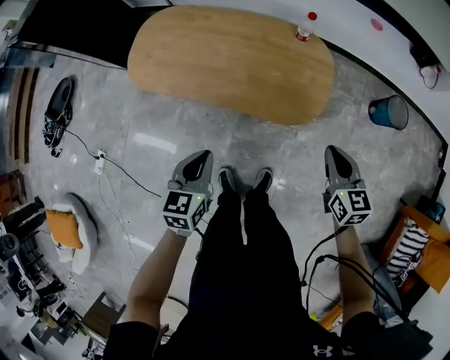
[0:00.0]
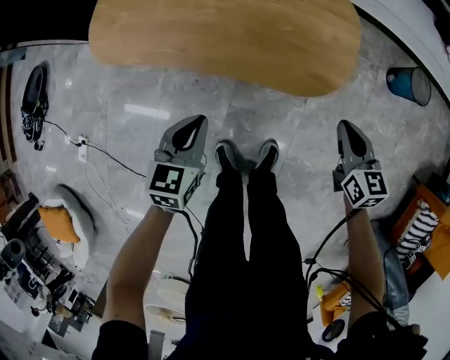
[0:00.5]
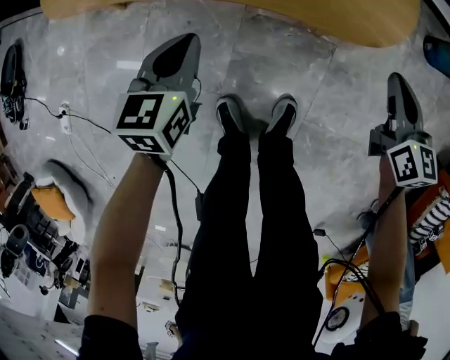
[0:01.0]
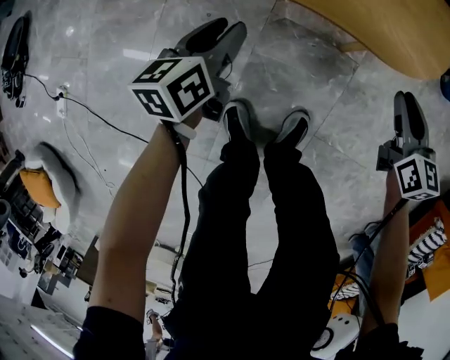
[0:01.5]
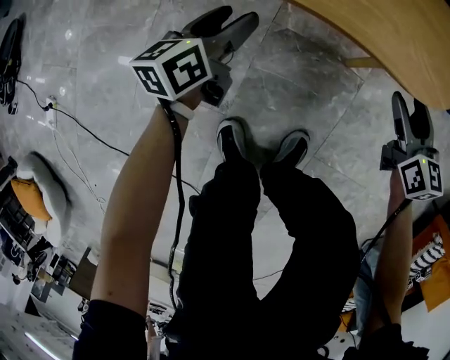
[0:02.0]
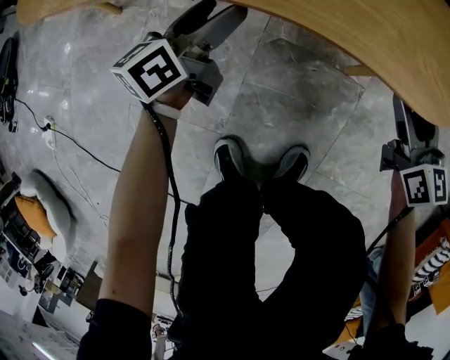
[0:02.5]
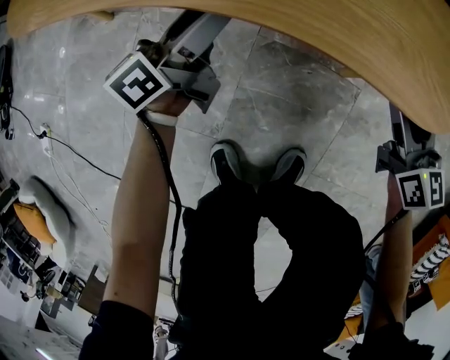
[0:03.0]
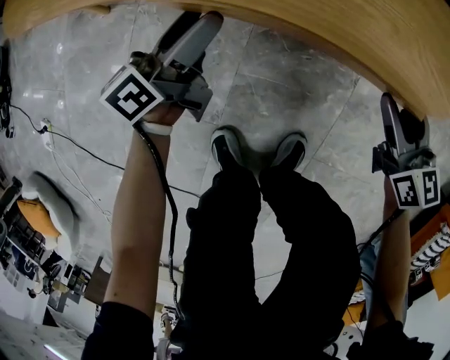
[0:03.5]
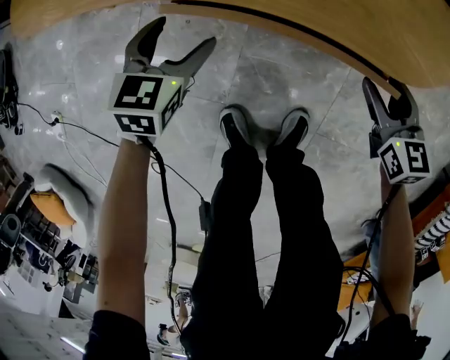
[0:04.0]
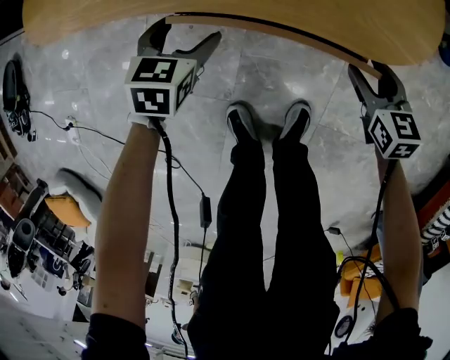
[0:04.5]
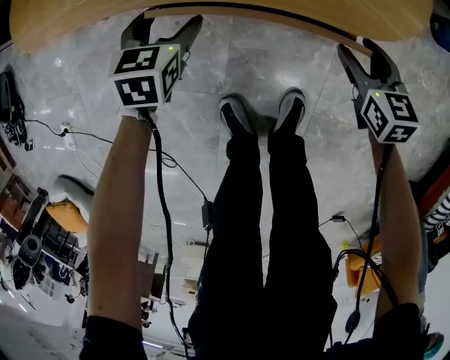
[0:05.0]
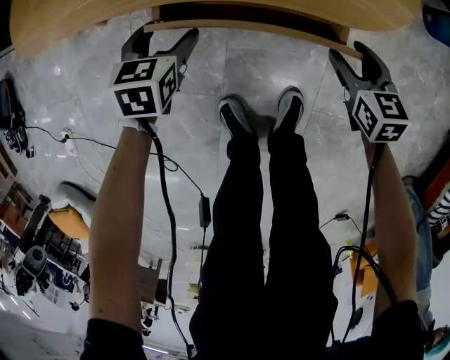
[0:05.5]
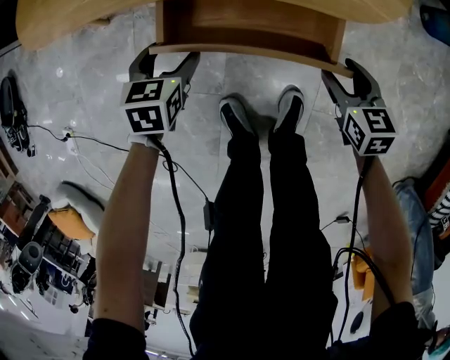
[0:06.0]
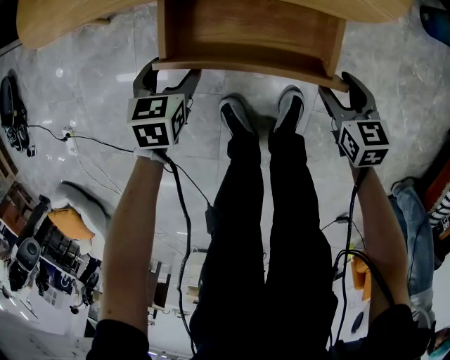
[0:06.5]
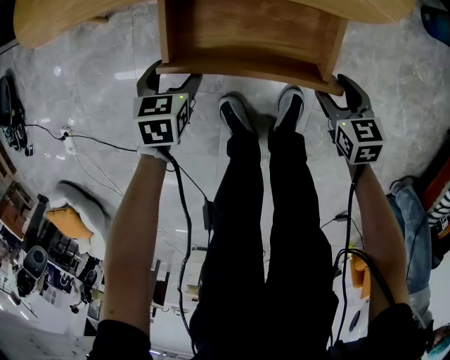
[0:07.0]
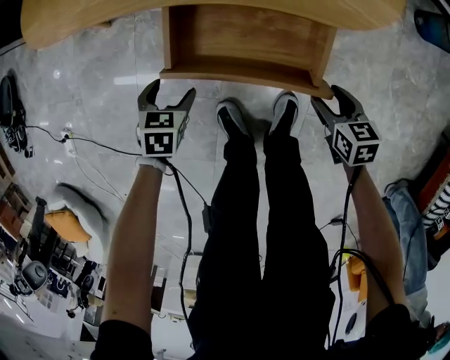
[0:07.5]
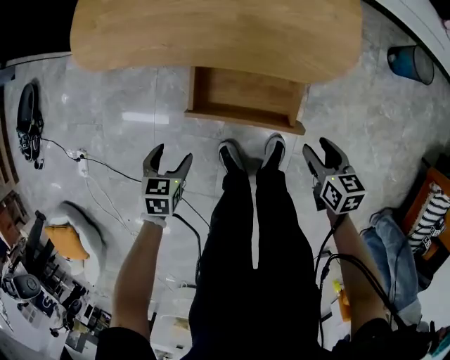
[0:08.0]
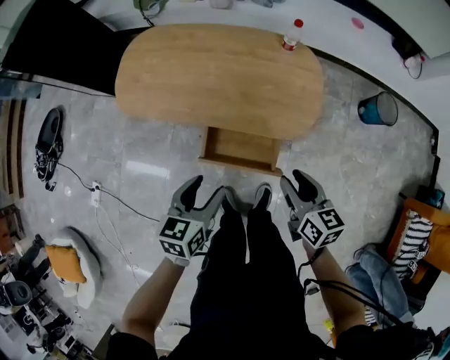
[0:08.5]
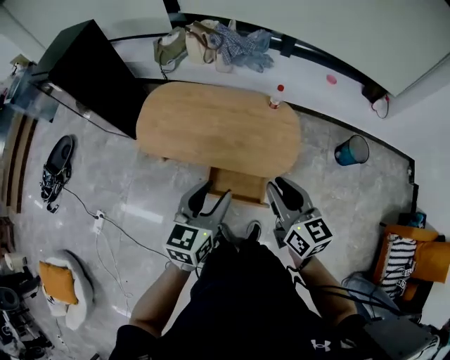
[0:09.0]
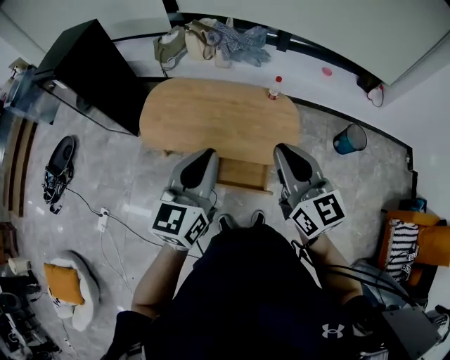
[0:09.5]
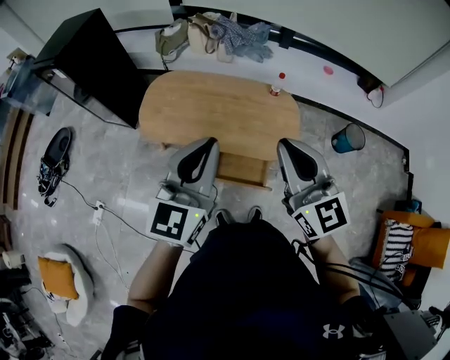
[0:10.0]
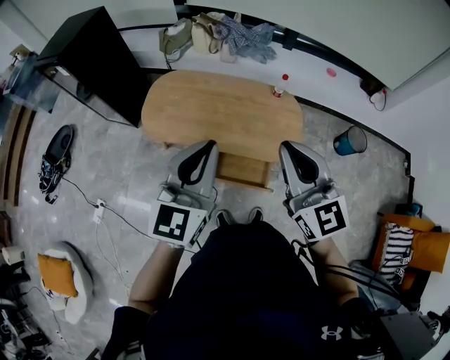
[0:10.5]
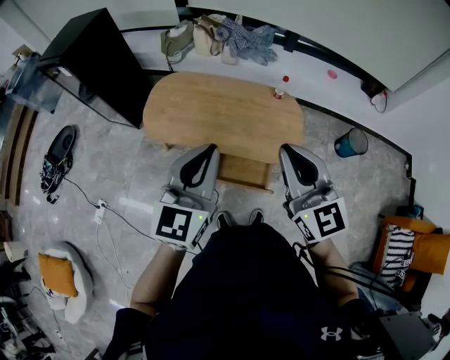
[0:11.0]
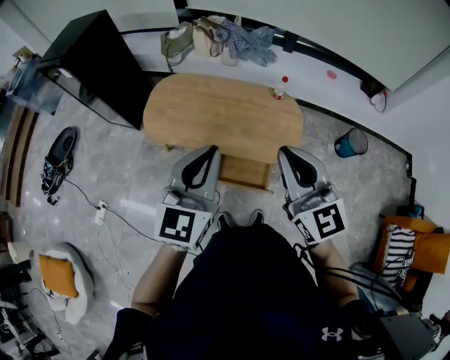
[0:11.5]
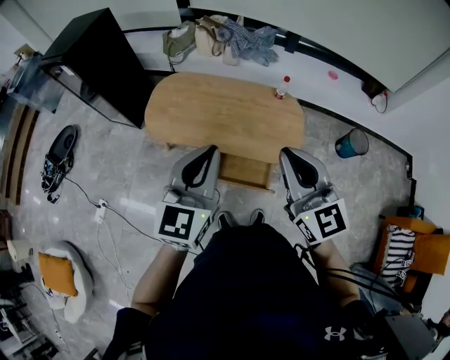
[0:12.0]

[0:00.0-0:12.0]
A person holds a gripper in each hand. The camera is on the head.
0:00.0 to 0:02.0: The grippers both shift downward by about 40 cm. The right gripper opens up, while the left gripper swivels roughly 30 degrees, and opens up.
0:02.0 to 0:04.0: The left gripper moves some 5 cm forward and comes back, swivels some 40 degrees, and opens up.
0:04.0 to 0:06.0: Both grippers travel together backward, approximately 5 cm.
0:06.0 to 0:08.0: The left gripper moves upward, backward and to the left, roughly 20 cm; the right gripper moves upward, about 15 cm.
0:08.0 to 0:10.0: Both grippers move upward, roughly 70 cm. The left gripper tips its fingers upward by about 60 degrees, and closes its fingers; the right gripper angles its fingers upward, by roughly 50 degrees, and closes its fingers.
0:10.0 to 0:12.0: The grippers move only a little.

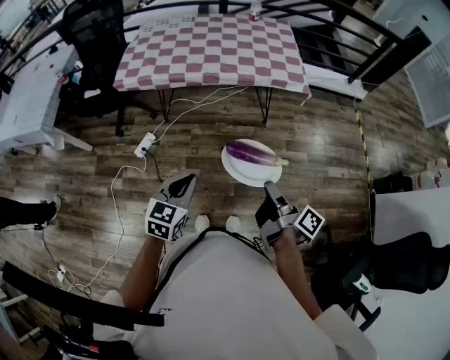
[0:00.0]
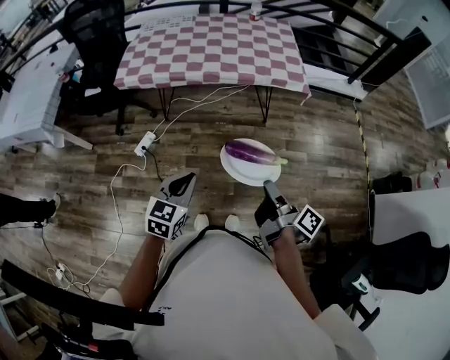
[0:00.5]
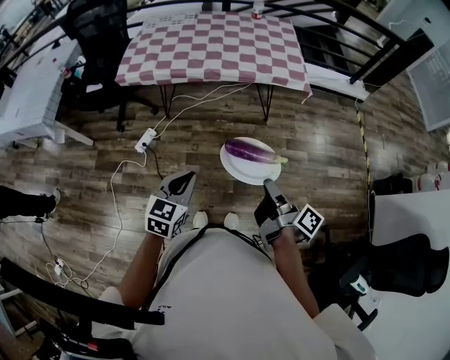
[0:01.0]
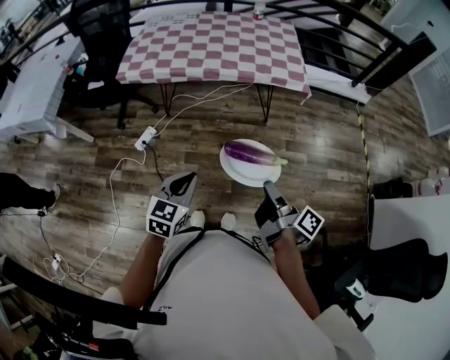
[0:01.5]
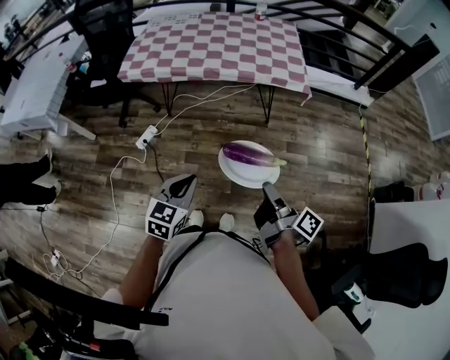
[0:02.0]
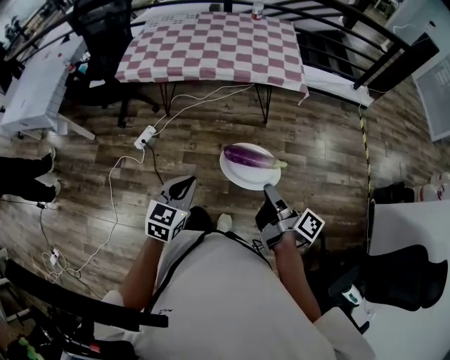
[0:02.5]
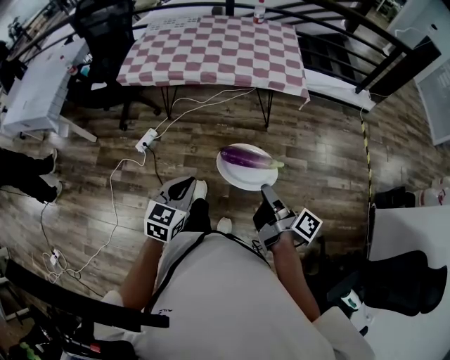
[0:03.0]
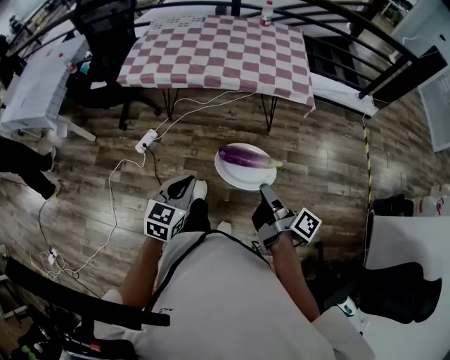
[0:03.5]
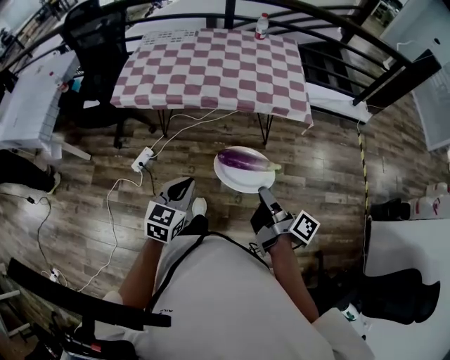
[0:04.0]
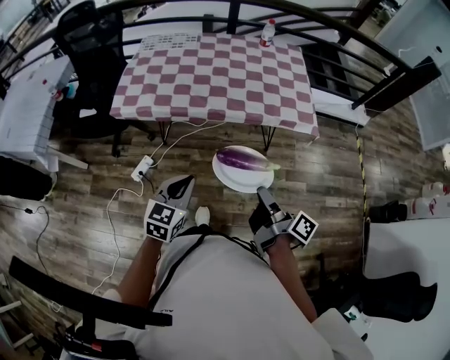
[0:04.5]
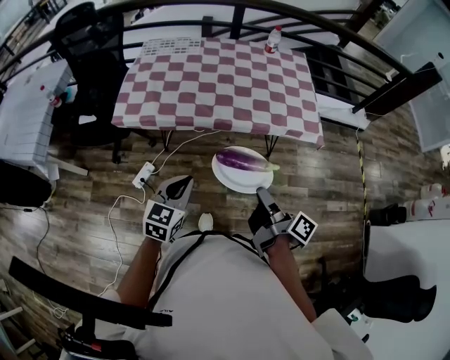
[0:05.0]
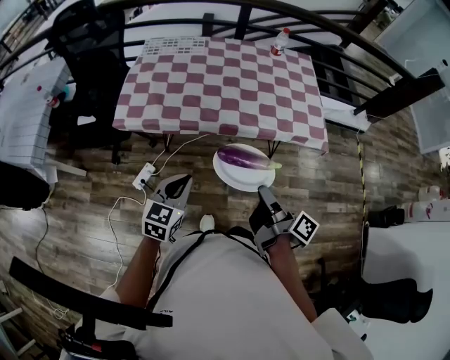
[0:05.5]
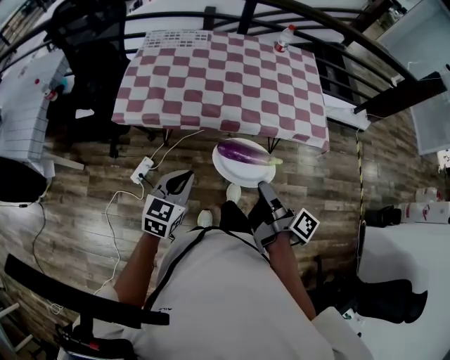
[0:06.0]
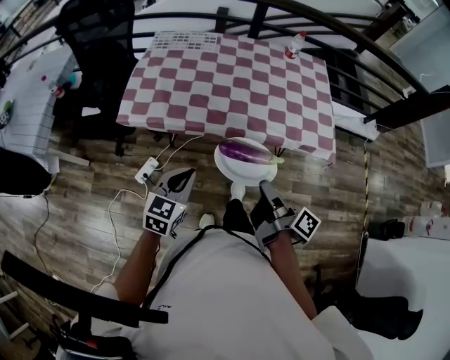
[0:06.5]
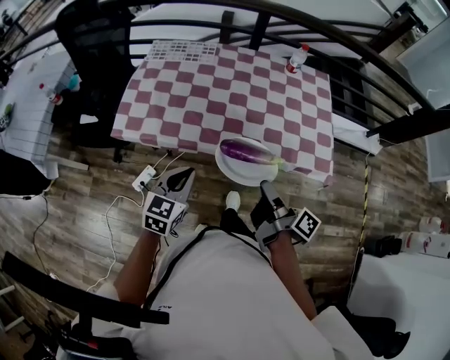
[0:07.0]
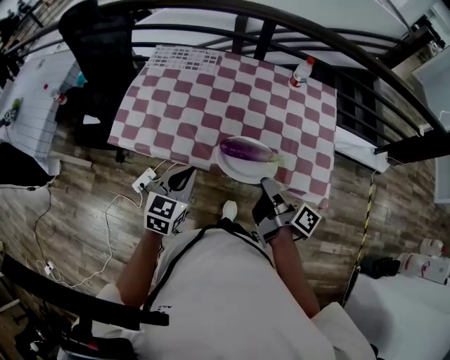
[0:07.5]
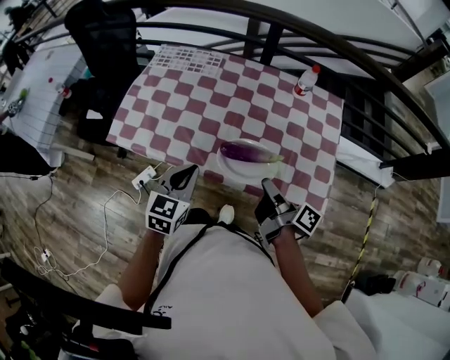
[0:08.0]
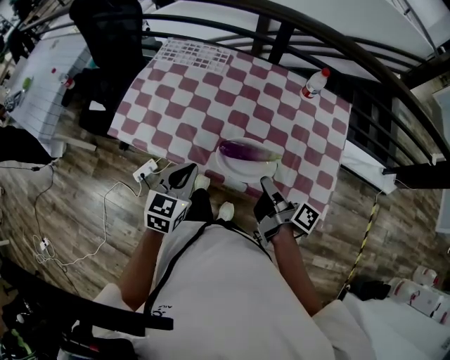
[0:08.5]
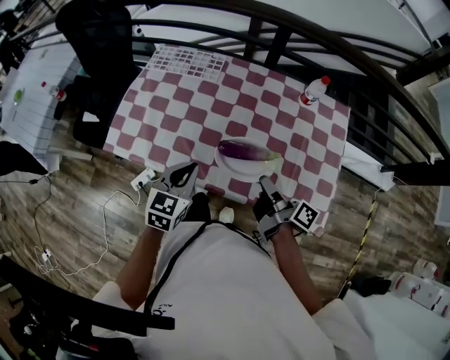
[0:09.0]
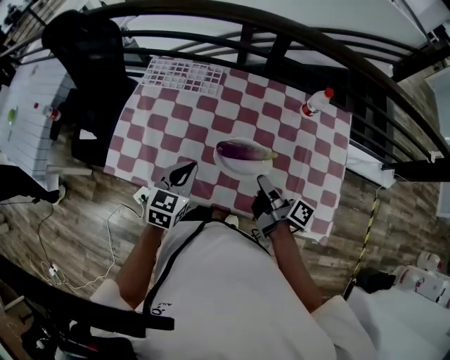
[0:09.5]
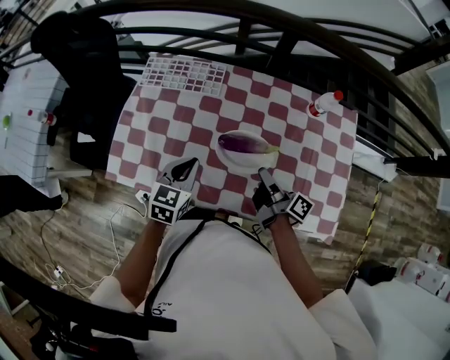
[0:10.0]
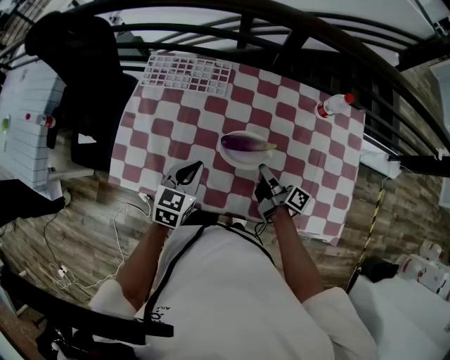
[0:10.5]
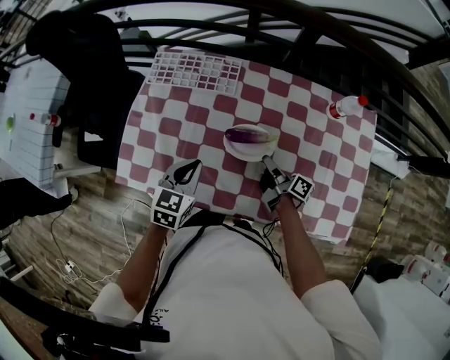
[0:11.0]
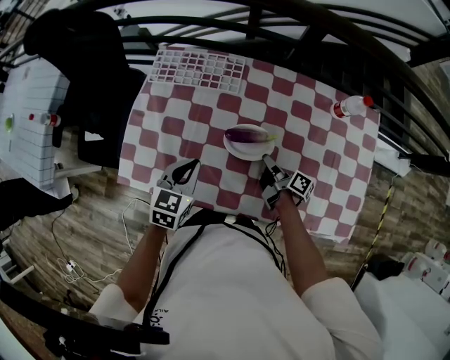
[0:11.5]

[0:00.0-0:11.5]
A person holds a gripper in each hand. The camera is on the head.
0:00.0 to 0:02.0: The left gripper ends up approximately 5 cm from where it was.
0:02.0 to 0:04.0: The left gripper changes place by approximately 15 cm.
0:04.0 to 0:06.0: The left gripper ends up roughly 25 cm from where it was.
0:06.0 to 0:07.5: The left gripper shifts by some 25 cm.
0:07.5 to 0:09.5: The left gripper moves some 20 cm.
0:09.5 to 0:11.5: The left gripper changes place by about 10 cm.

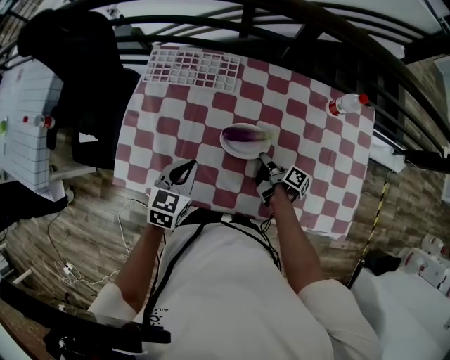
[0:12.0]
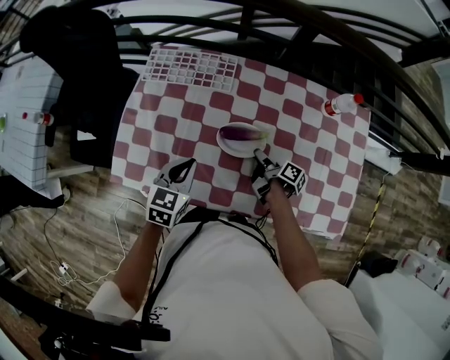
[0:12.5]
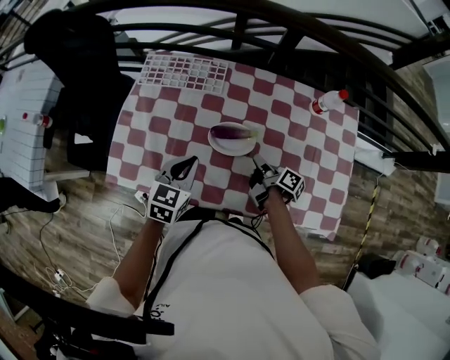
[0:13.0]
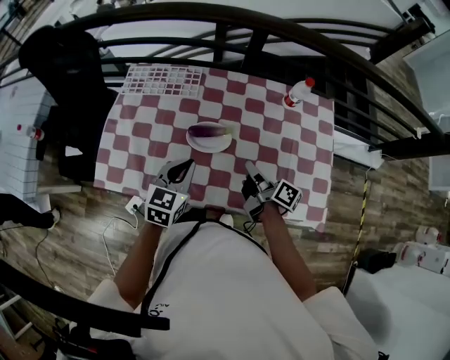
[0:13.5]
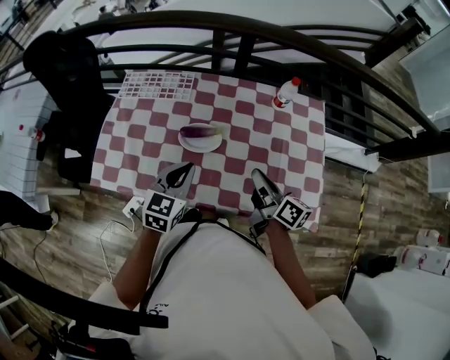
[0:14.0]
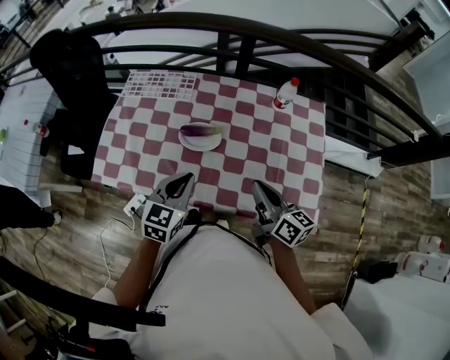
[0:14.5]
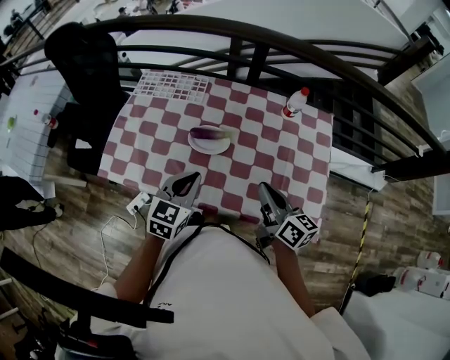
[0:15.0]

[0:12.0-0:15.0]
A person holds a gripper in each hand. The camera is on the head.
0:12.0 to 0:13.5: The left gripper moves roughly 15 cm.
0:13.5 to 0:15.0: The left gripper shifts by approximately 10 cm.
